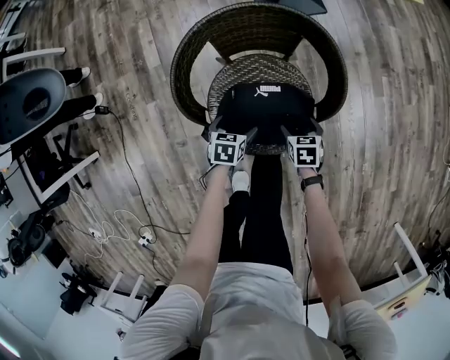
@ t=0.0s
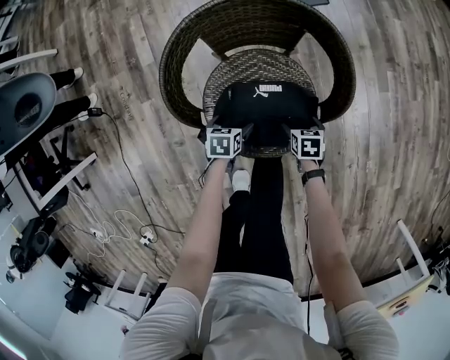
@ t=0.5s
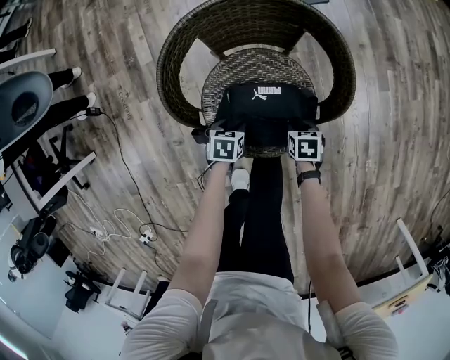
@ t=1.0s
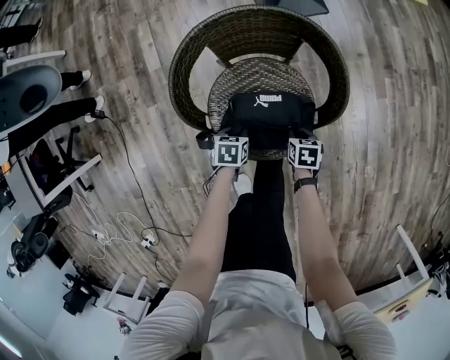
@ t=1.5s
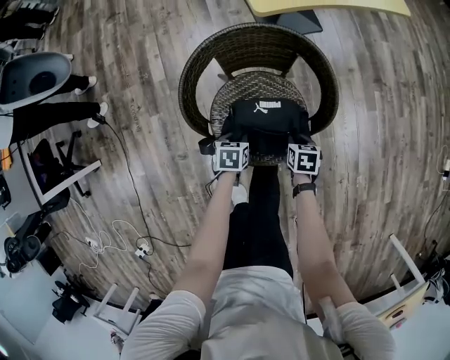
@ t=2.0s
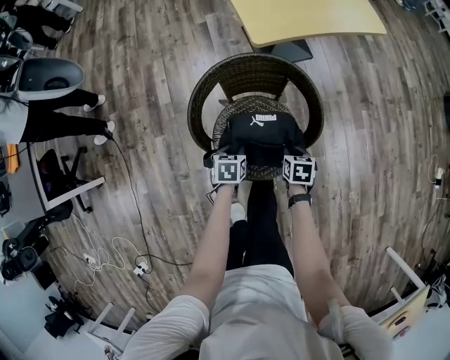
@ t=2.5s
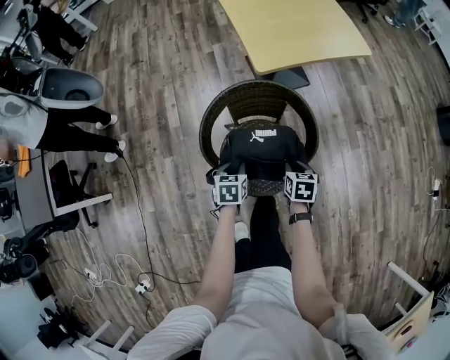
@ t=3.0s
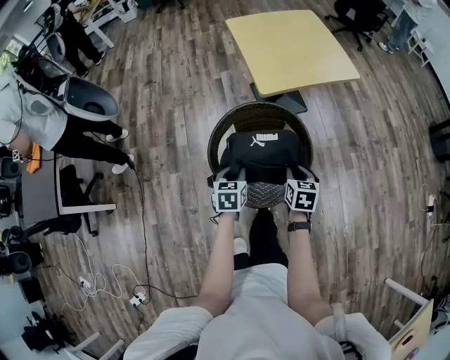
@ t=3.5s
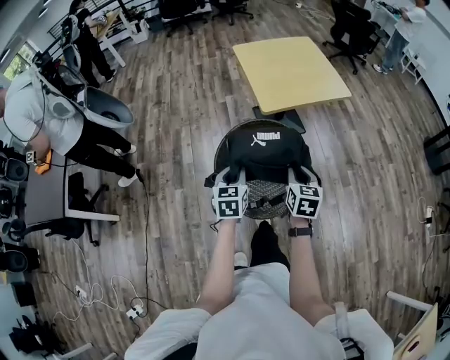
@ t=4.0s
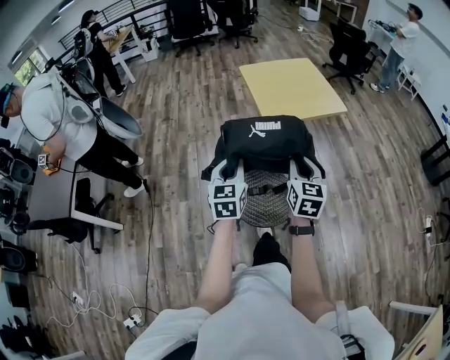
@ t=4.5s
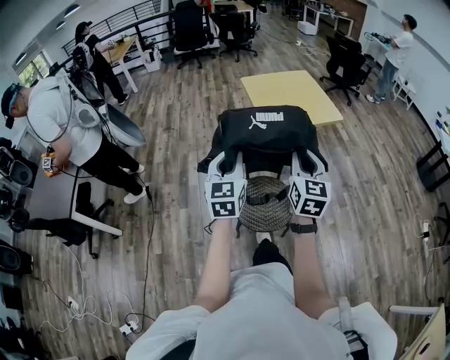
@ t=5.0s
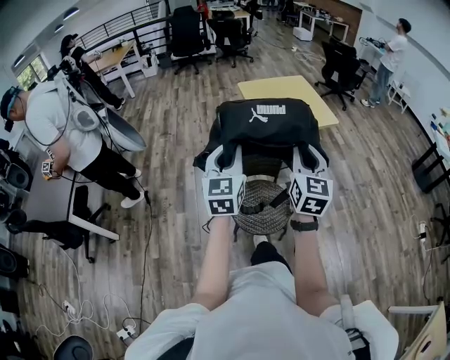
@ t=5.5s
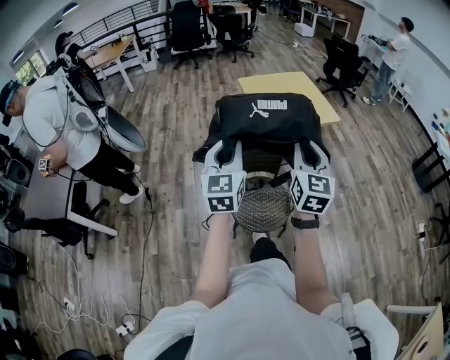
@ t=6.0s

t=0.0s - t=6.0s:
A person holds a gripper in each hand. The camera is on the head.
t=0.0s - t=2.0s: The left gripper moves approximately 5 cm downward and comes back, and closes up. Meanwhile the right gripper goes downward and returns, some 5 cm each way, and closes up.
t=2.0s - t=4.0s: The two grippers go roughly 40 cm upward. The left gripper points its fingers some 30 degrees further upward. Meanwhile the right gripper tips its fingers upward by about 40 degrees.
t=4.0s - t=6.0s: Both grippers move upward, approximately 25 cm. The left gripper tilts its fingers some 30 degrees upward. The right gripper tips its fingers upward by roughly 30 degrees.

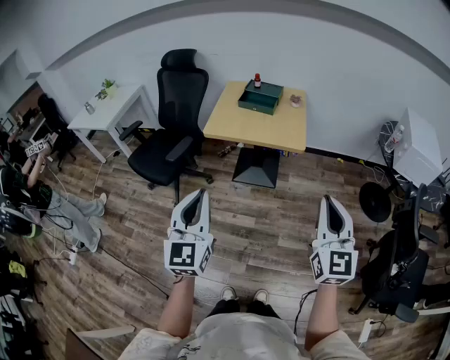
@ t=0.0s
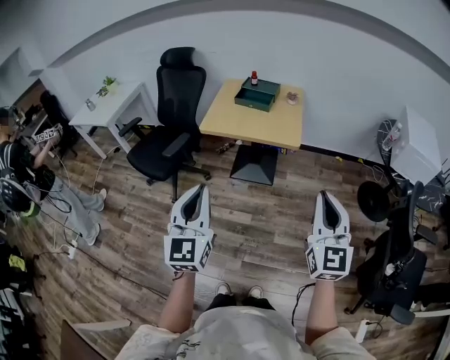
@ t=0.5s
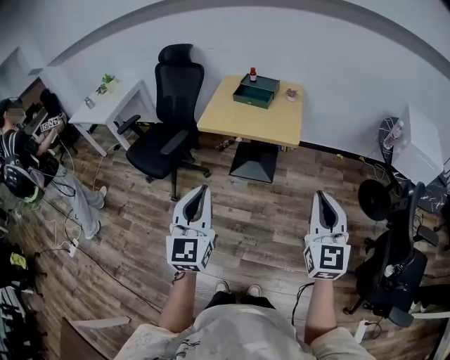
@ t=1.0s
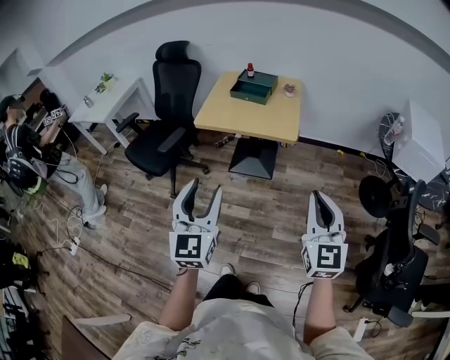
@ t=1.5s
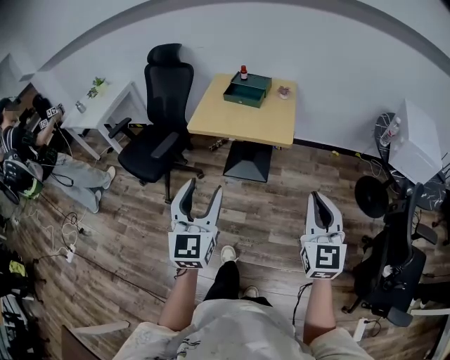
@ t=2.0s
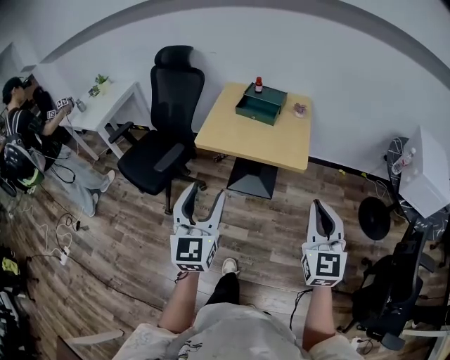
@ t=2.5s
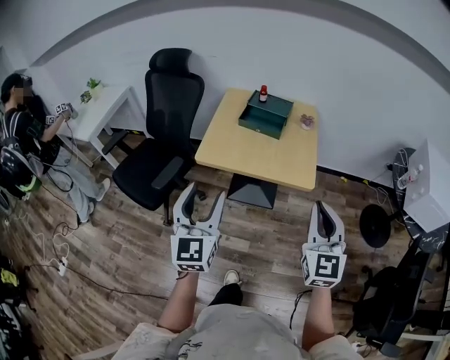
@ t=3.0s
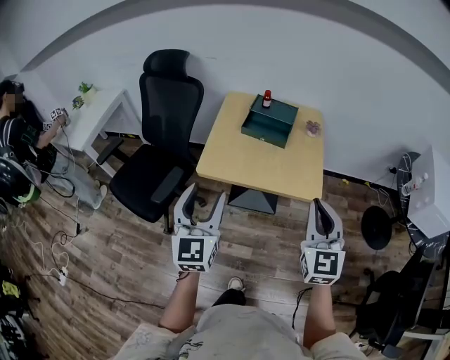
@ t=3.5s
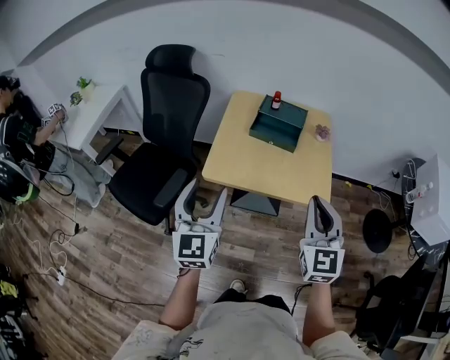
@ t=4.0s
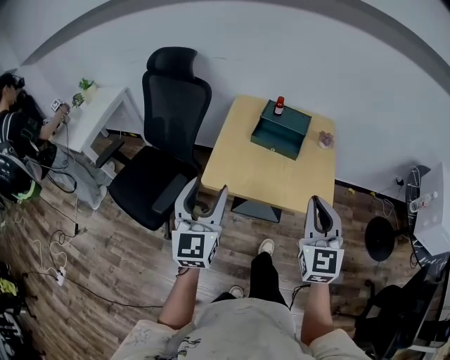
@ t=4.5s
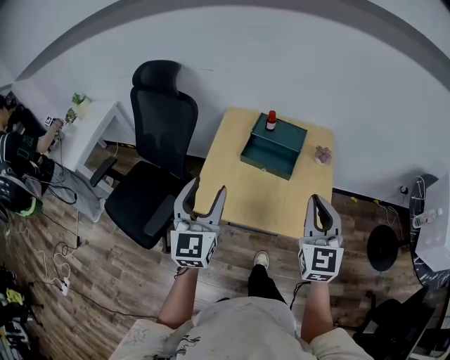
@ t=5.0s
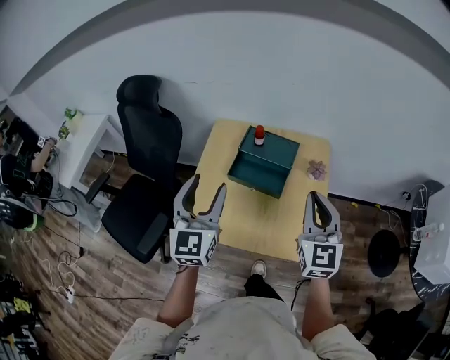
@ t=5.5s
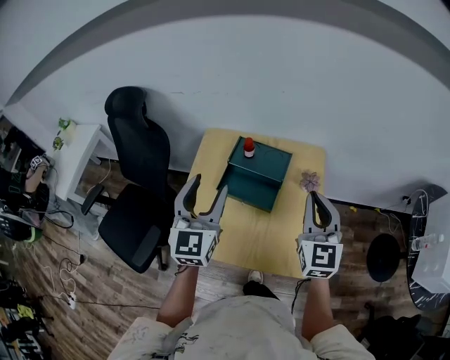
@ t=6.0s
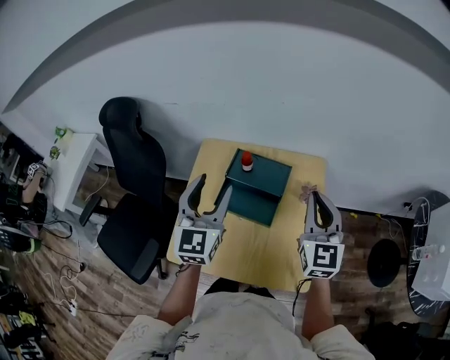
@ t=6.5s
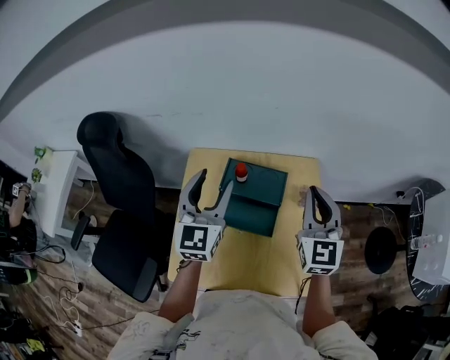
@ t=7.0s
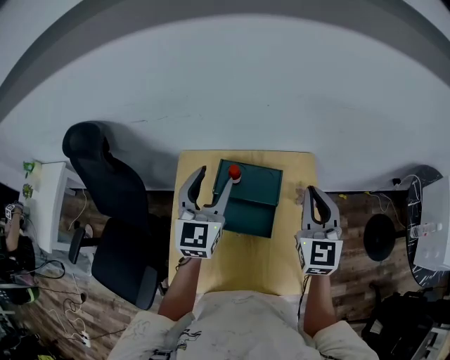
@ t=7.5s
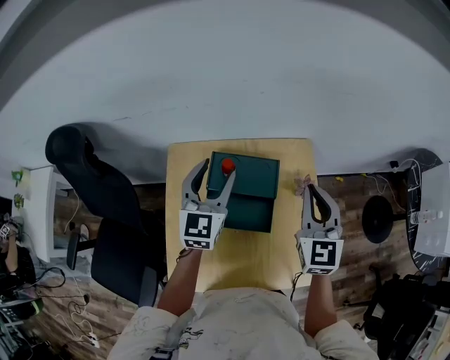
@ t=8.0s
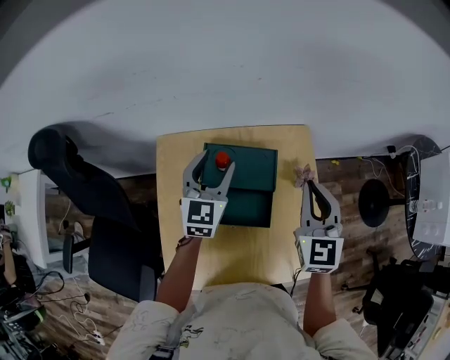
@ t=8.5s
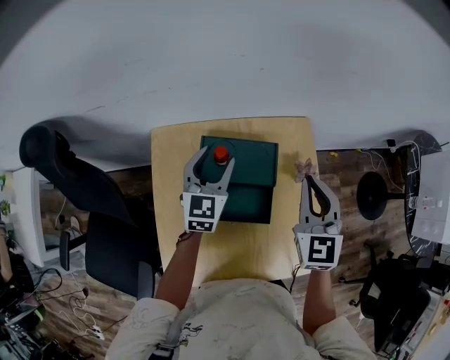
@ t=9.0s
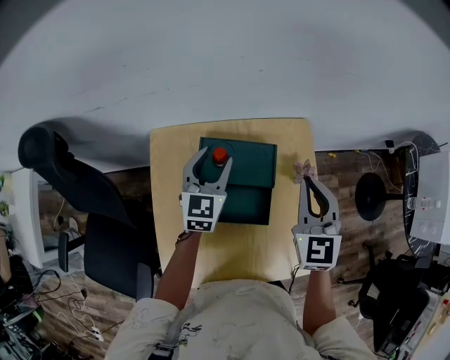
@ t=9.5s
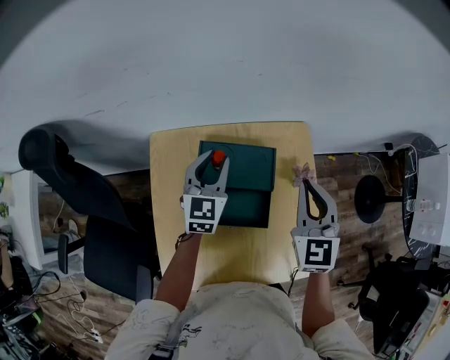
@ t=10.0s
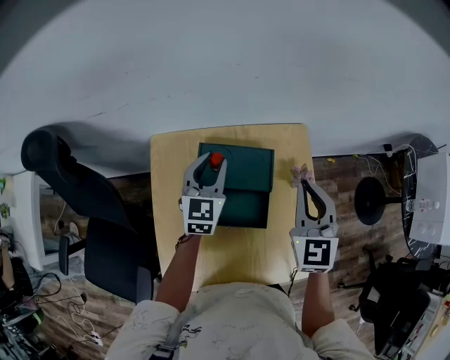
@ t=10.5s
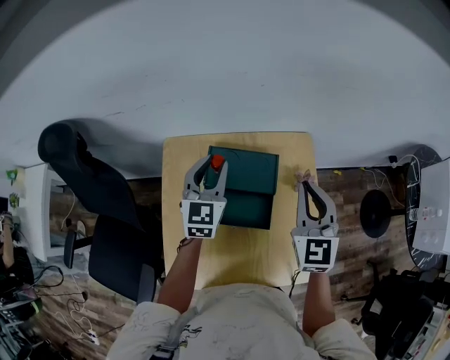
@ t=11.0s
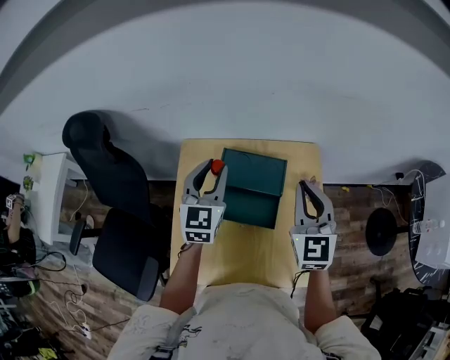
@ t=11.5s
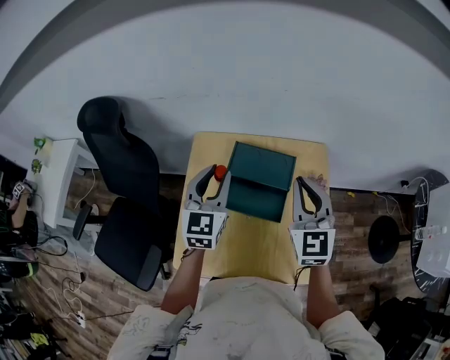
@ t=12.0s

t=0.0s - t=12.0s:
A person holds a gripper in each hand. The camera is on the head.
t=0.0s - t=2.0s: The left gripper moves to the right and forward, about 10 cm, and opens up. Meanwhile the right gripper is displaced to the right by about 5 cm.
t=2.0s - t=4.0s: Both grippers are carried forward and to the left, approximately 40 cm.
t=4.0s - t=6.0s: The left gripper goes about 35 cm forward and to the right; the right gripper heads forward, covering about 35 cm.
t=6.0s - t=8.0s: The left gripper goes some 20 cm forward; the right gripper shifts about 15 cm forward.
t=8.0s - t=10.0s: The left gripper goes about 10 cm downward and forward, and closes up.
t=10.0s - t=12.0s: The left gripper heads backward and upward, covering approximately 20 cm; the right gripper is displaced backward, upward and to the left by approximately 10 cm.

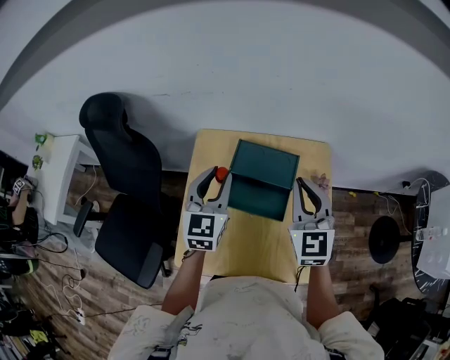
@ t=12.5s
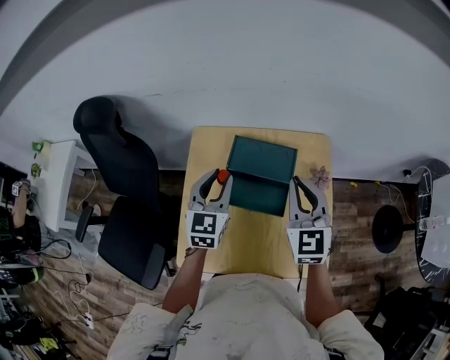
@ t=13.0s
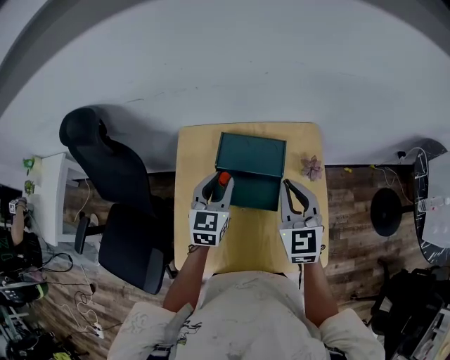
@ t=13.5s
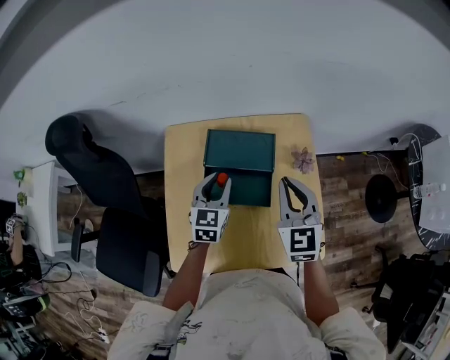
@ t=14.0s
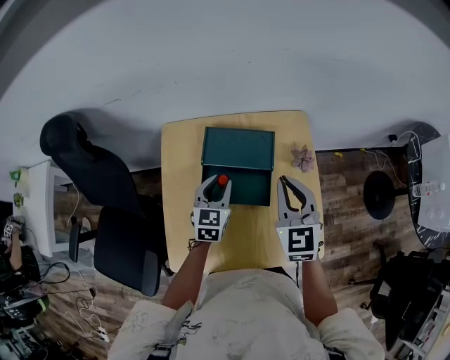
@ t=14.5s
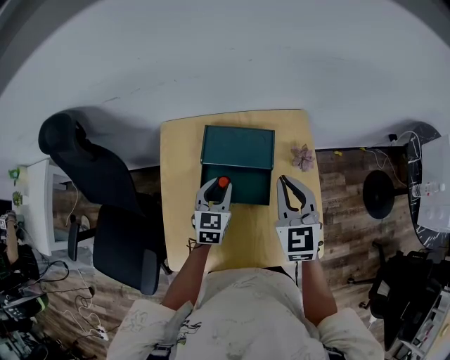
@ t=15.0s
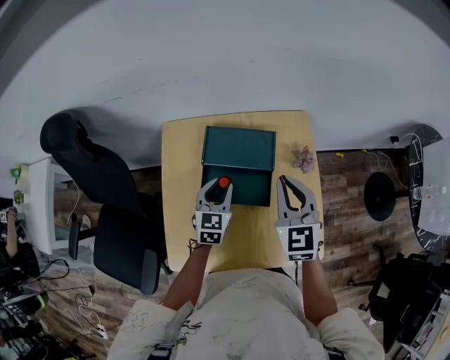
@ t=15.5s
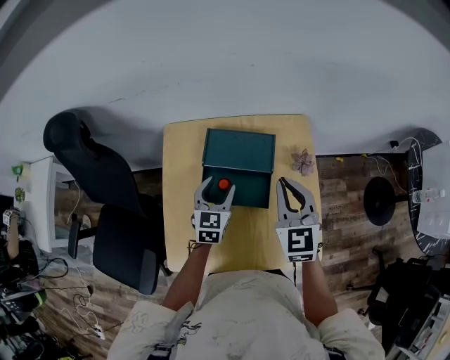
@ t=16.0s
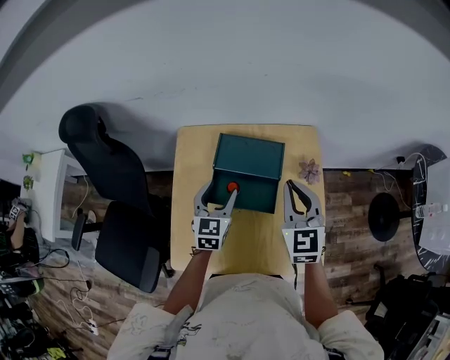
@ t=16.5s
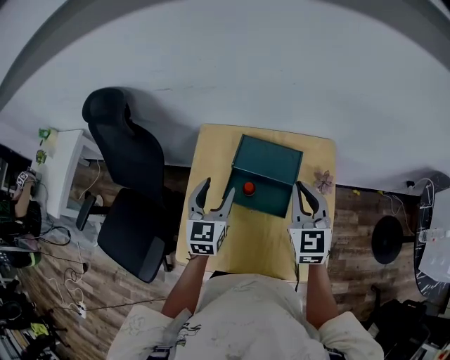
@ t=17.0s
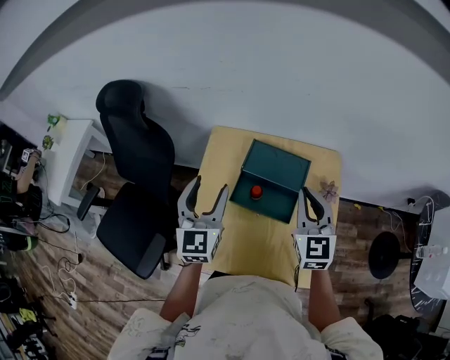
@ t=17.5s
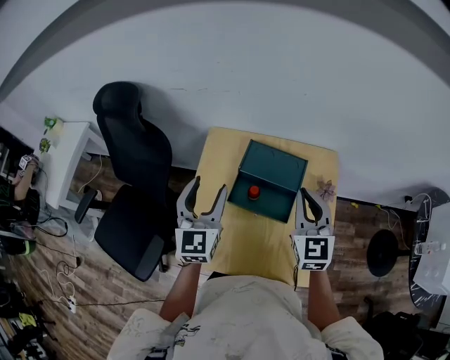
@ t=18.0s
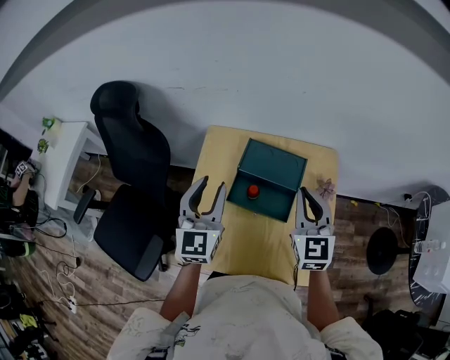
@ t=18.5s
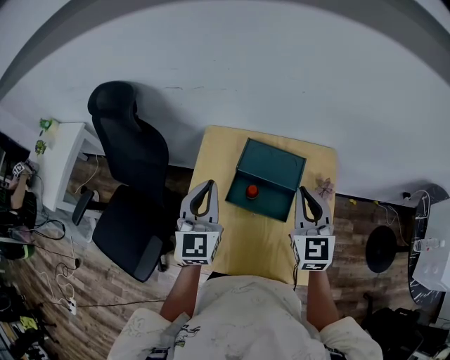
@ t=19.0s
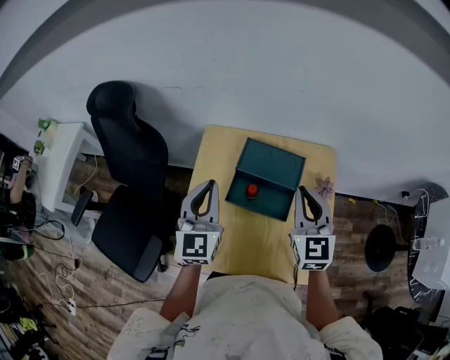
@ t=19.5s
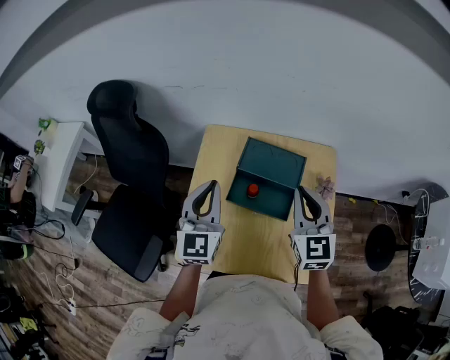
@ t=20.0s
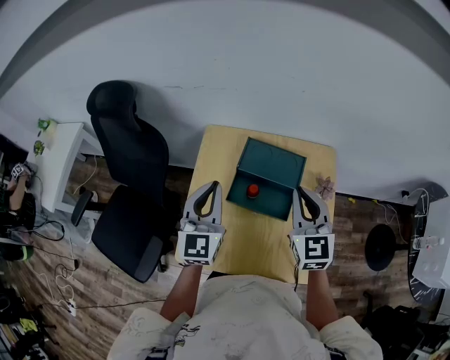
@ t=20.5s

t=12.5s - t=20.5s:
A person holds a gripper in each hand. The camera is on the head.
t=12.5s - t=14.5s: The right gripper travels downward by some 5 cm, while the left gripper goes roughly 15 cm downward.
t=14.5s - t=16.5s: The left gripper opens.
t=16.5s - t=18.5s: The left gripper is displaced upward and to the left by some 20 cm, and rotates about 20 degrees.
t=18.5s - t=20.5s: The left gripper closes.

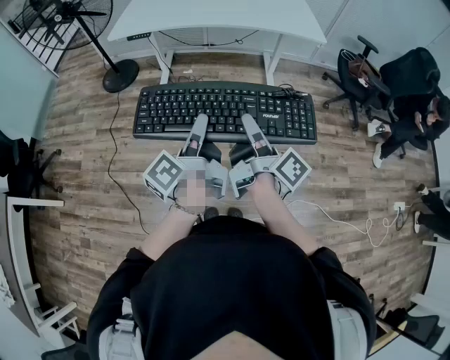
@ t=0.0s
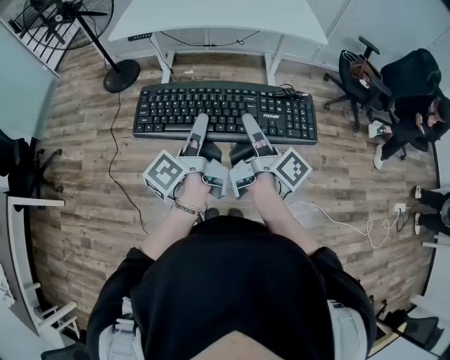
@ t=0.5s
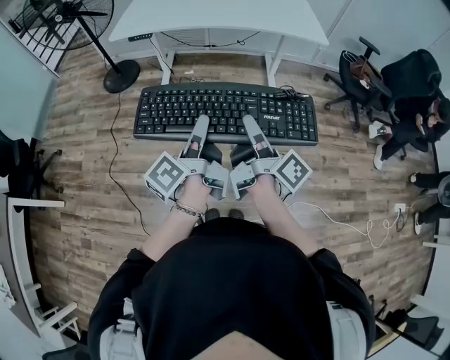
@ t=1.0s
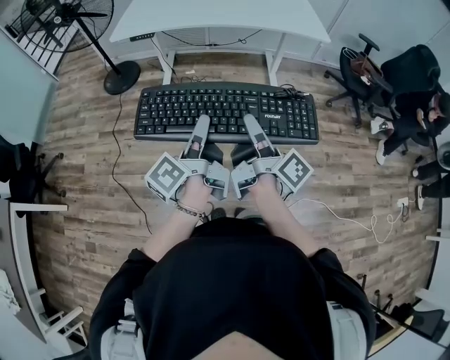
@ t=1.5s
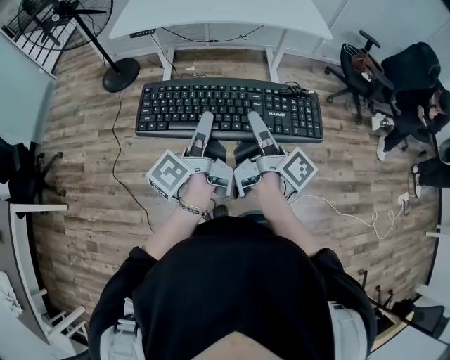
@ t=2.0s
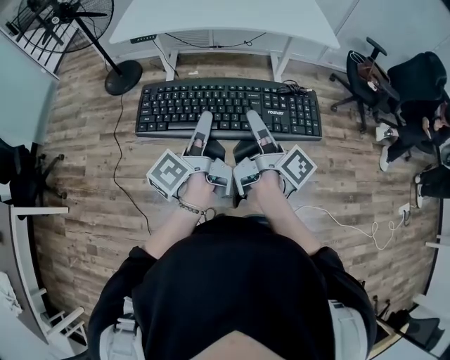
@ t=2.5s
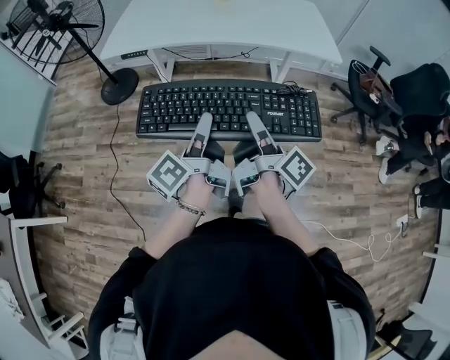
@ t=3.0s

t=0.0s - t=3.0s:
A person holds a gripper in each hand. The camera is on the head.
t=1.5s - t=3.0s: The left gripper shifts by about 15 cm.
